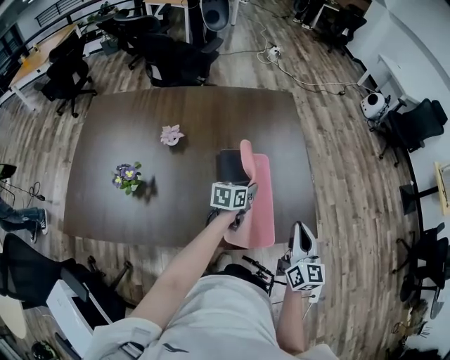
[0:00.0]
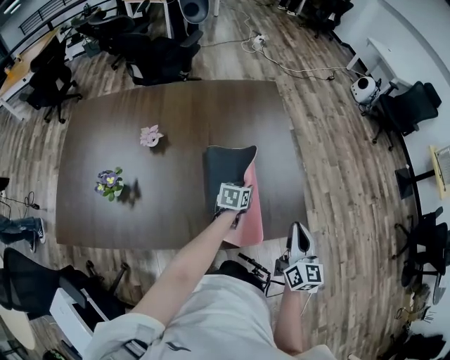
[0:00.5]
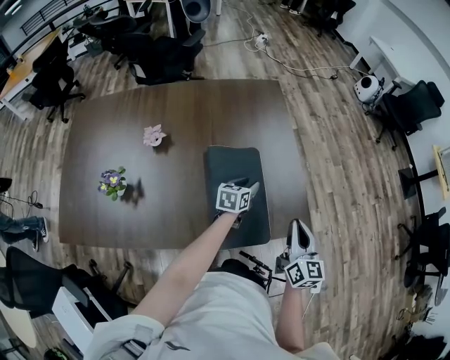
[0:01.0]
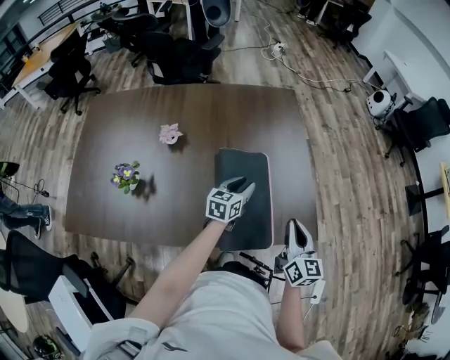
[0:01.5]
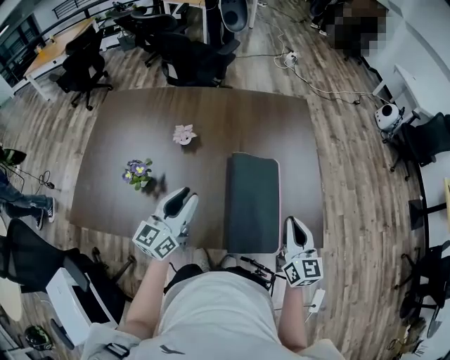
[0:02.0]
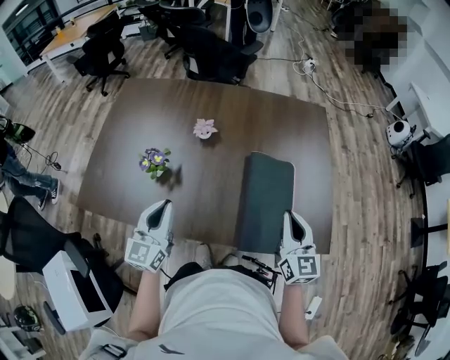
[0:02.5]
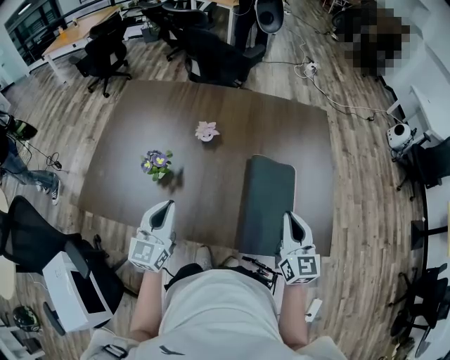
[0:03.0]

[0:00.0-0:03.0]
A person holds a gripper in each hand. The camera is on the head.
0:01.5 to 0:03.0: The left gripper shifts approximately 40 cm to the left, backward and upward, and swivels approximately 40 degrees, while the right gripper heads to the left, covering about 15 cm.

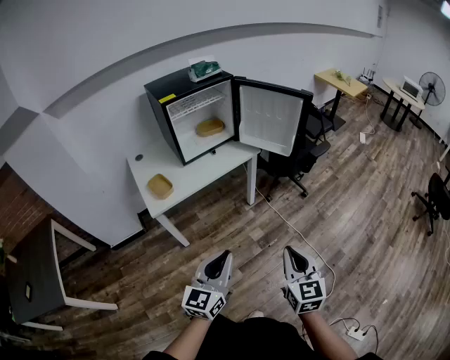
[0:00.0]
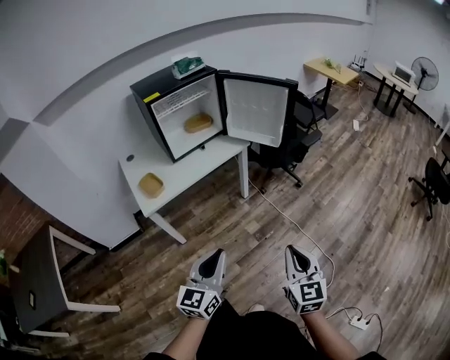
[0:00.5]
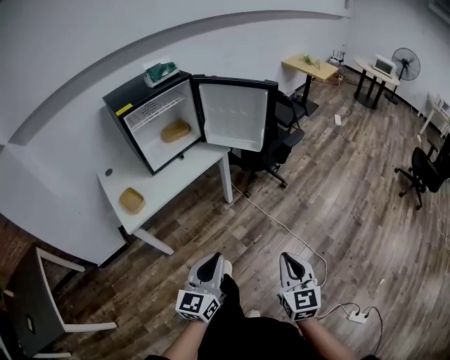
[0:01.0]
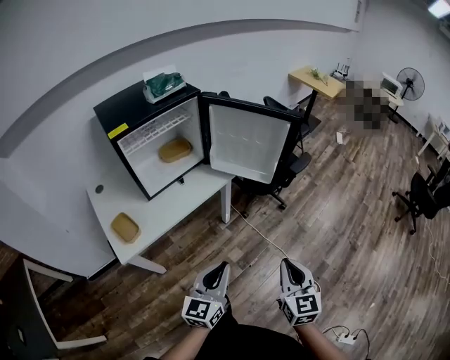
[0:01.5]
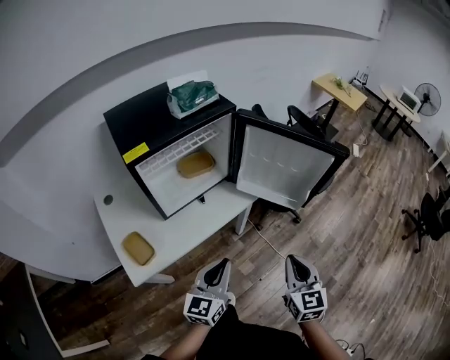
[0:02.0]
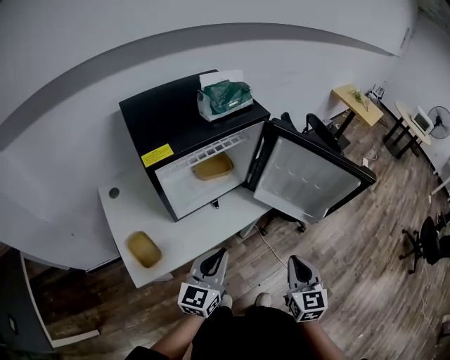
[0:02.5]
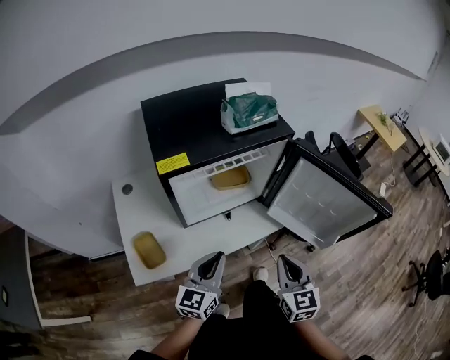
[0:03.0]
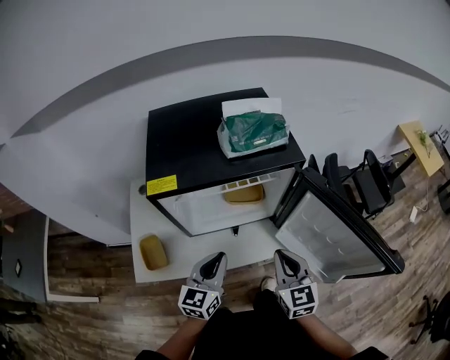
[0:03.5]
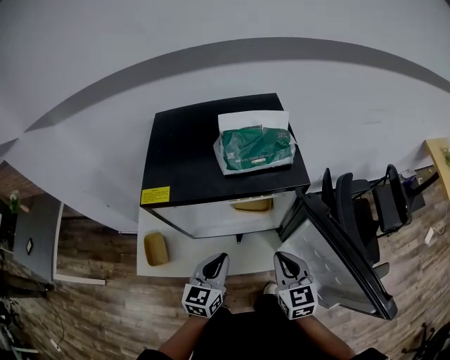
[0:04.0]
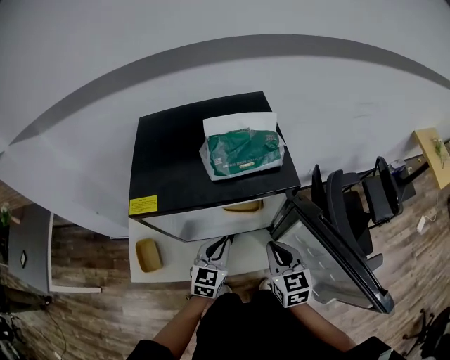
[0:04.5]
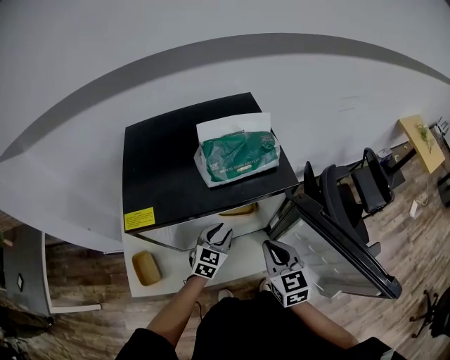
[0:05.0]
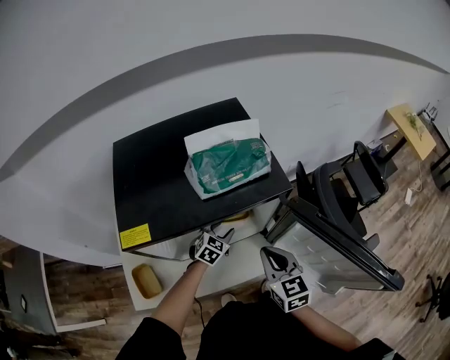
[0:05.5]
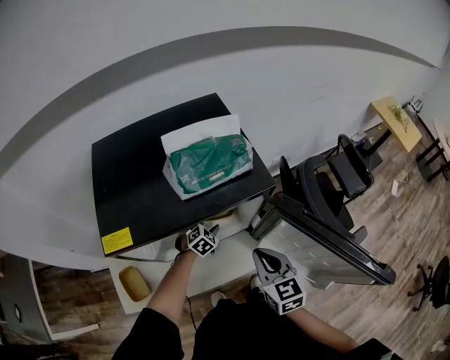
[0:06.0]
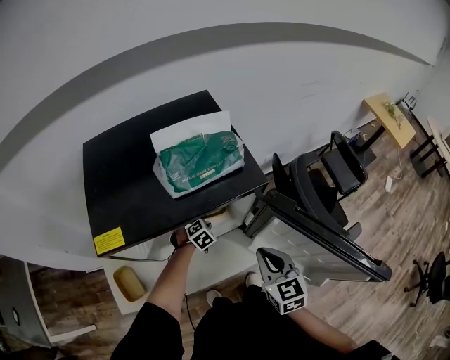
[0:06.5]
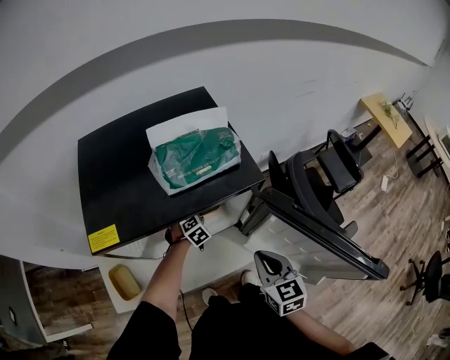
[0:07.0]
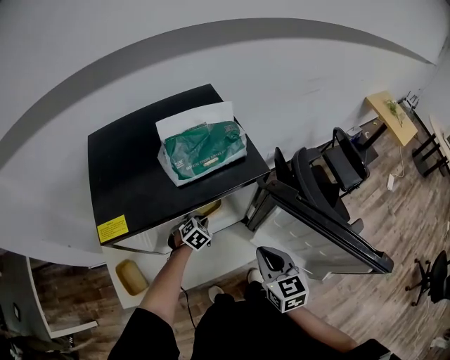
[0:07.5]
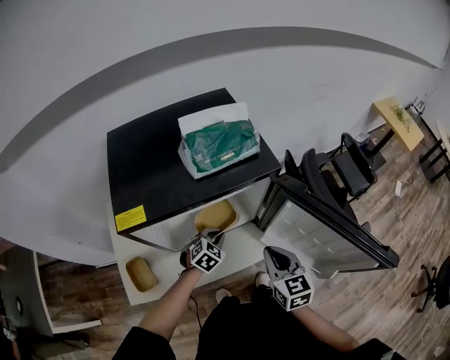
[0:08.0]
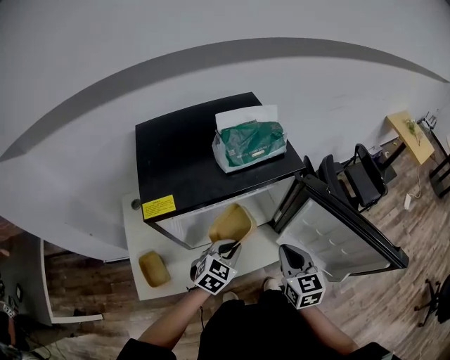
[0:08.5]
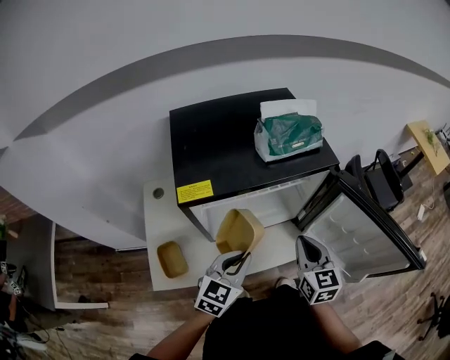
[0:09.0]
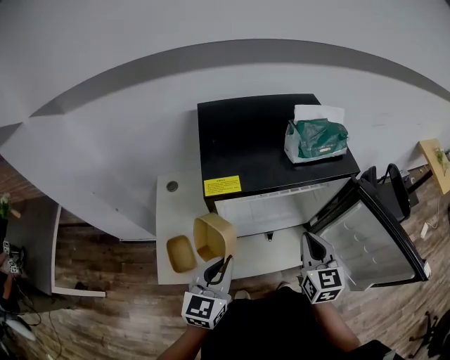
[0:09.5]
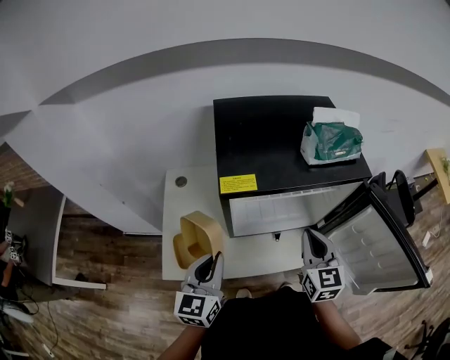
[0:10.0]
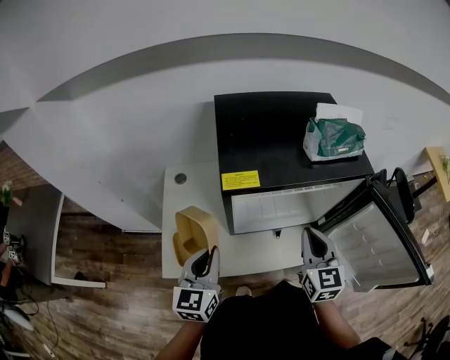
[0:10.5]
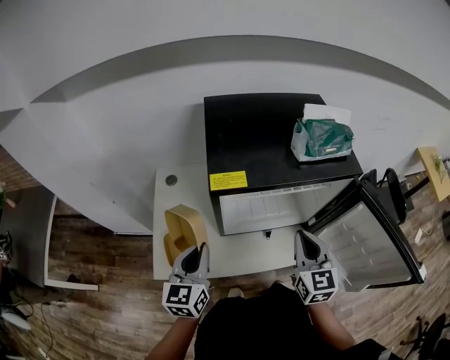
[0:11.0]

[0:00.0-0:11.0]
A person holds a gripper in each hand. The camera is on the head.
0:00.0 to 0:02.0: The grippers both shift forward by approximately 35 cm.
0:02.0 to 0:03.5: The right gripper ends up approximately 30 cm from where it was, and changes its angle by roughly 30 degrees. The left gripper changes place by roughly 20 cm, and rotates some 30 degrees.
0:03.5 to 0:05.5: The right gripper heads forward, covering approximately 10 cm. Meanwhile the left gripper moves forward and downward, about 30 cm, rotates about 40 degrees, and opens its fingers.
0:05.5 to 0:07.5: The left gripper shifts roughly 5 cm downward, and closes its fingers, while the right gripper moves approximately 5 cm.
0:07.5 to 0:09.0: The right gripper heads to the left, covering some 5 cm. Meanwhile the left gripper goes approximately 30 cm upward and backward, and angles its fingers upward, by about 40 degrees.
0:09.0 to 0:11.0: The left gripper is displaced to the left by roughly 20 cm, and changes its angle by about 40 degrees. Meanwhile the right gripper moves to the left, some 5 cm.

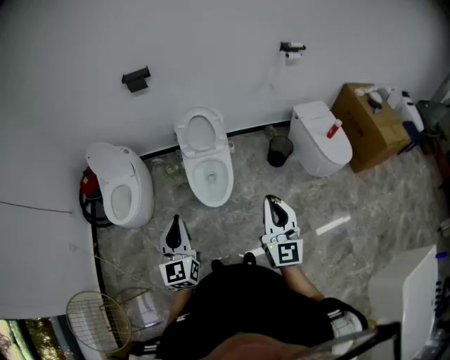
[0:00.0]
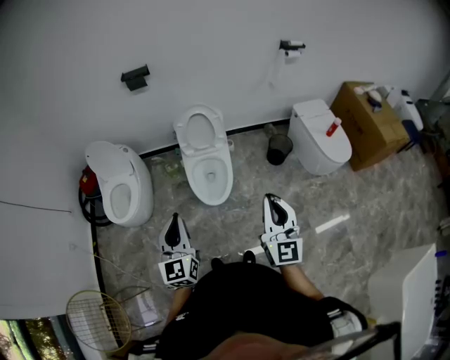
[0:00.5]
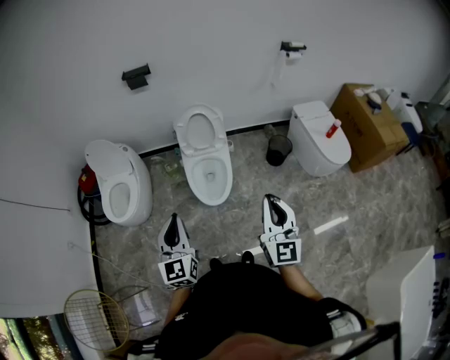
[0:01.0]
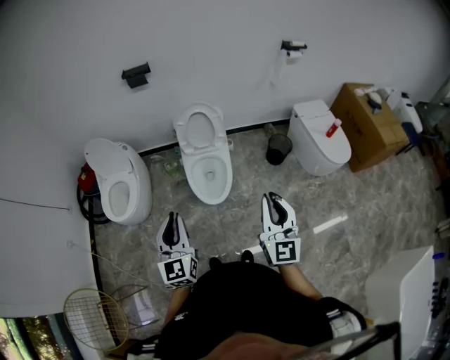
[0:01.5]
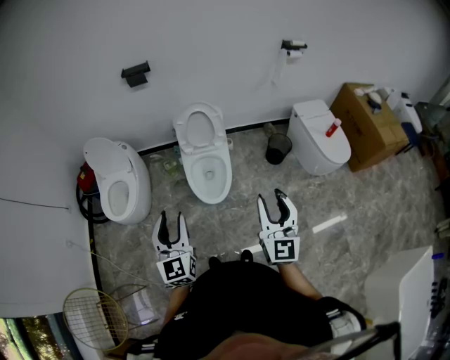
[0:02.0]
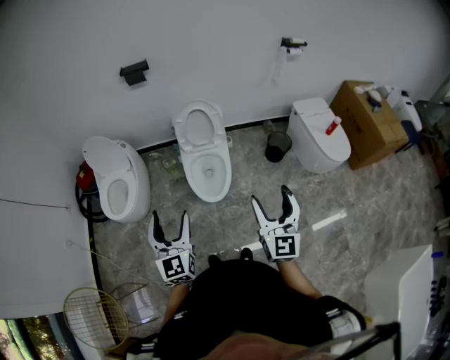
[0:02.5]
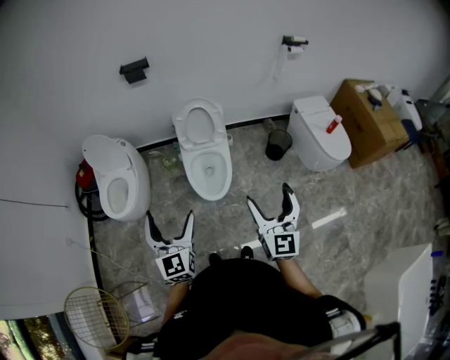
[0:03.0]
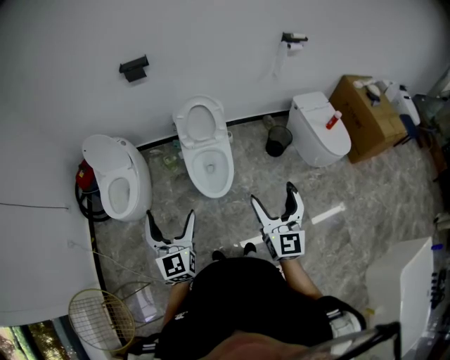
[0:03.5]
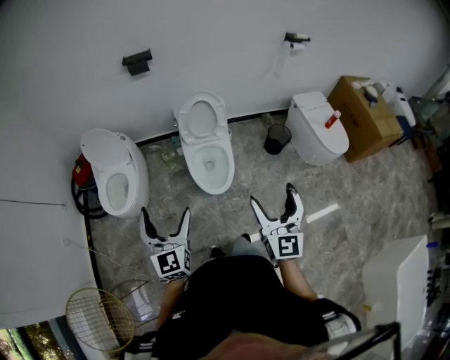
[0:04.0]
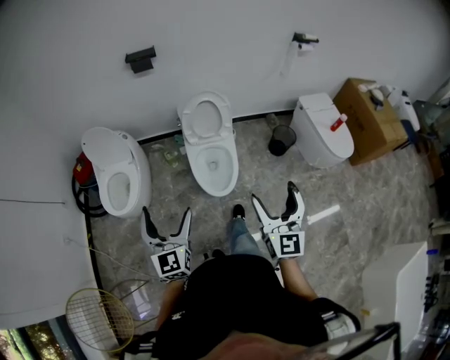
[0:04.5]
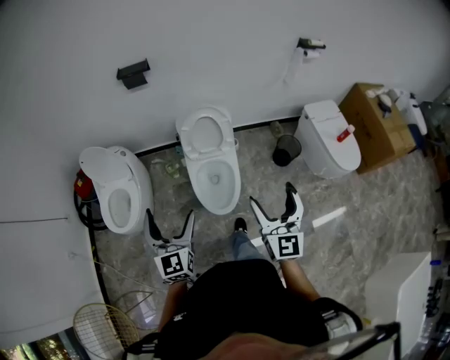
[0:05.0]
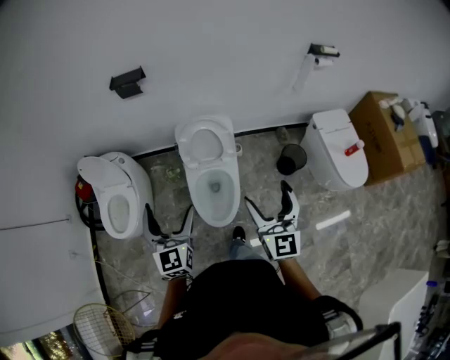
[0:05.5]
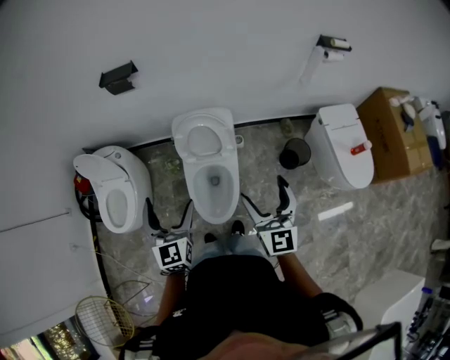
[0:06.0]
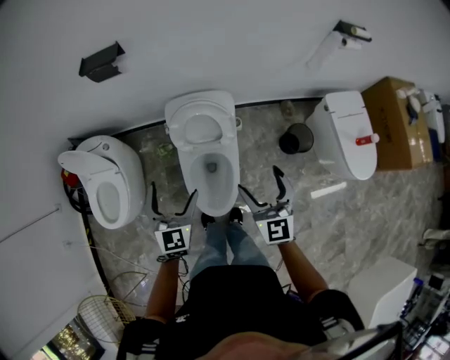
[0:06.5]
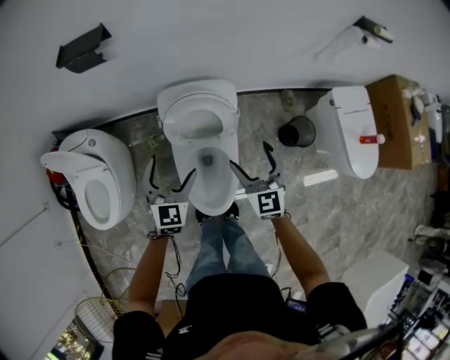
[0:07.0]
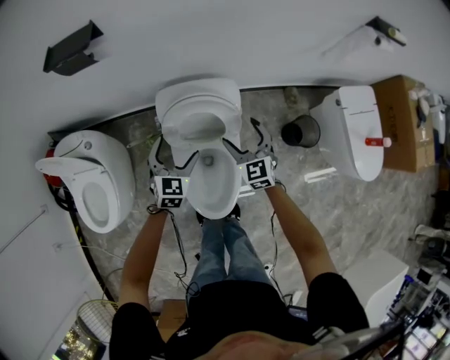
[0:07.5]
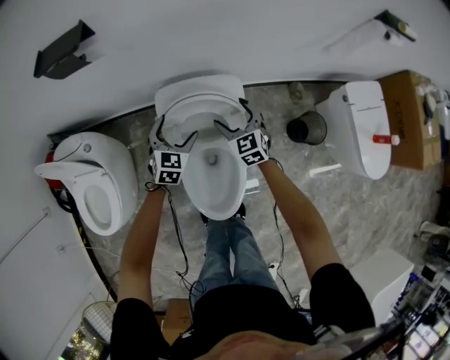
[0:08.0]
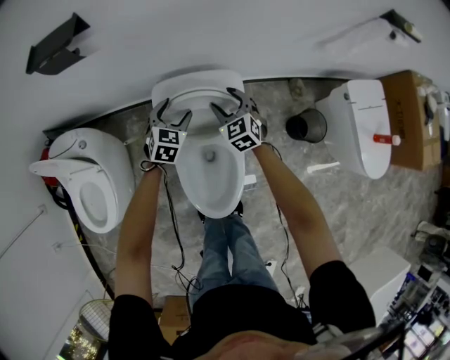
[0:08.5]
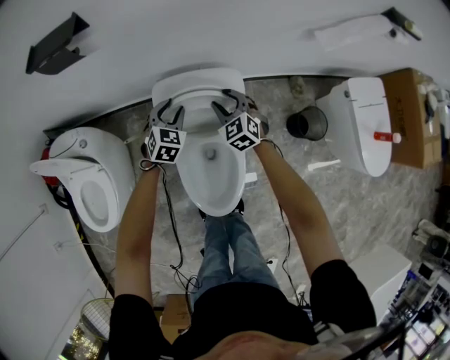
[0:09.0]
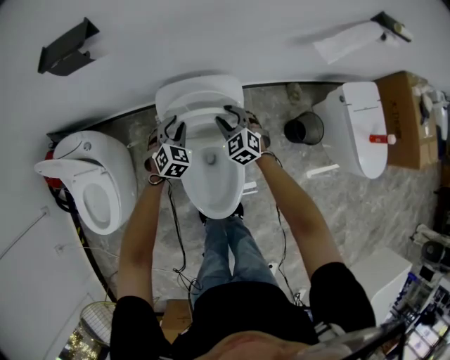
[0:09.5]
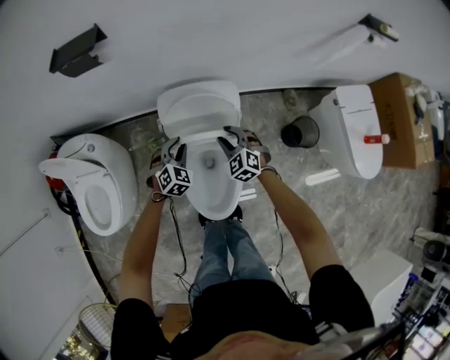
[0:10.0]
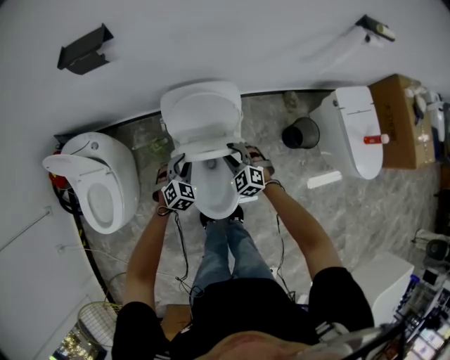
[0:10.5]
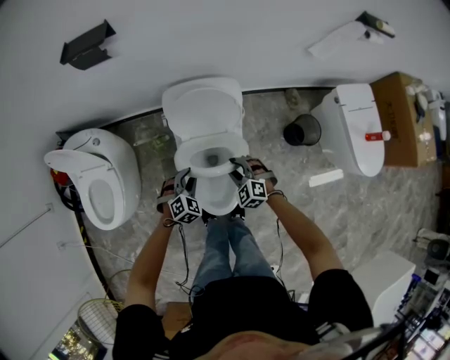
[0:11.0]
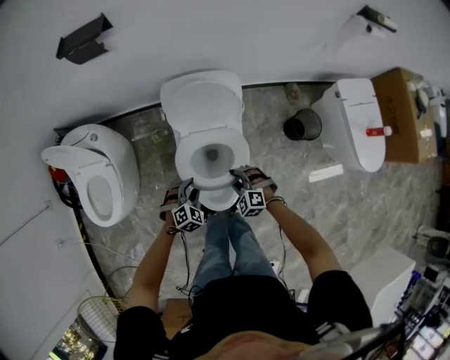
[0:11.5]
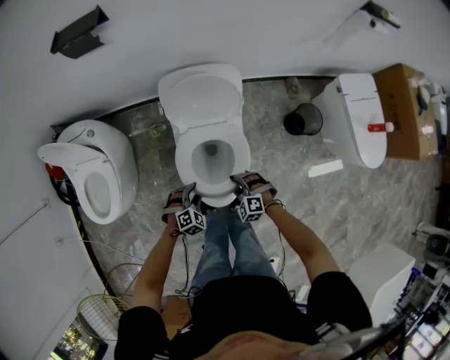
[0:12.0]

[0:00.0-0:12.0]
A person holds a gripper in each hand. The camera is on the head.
0:00.0 to 0:02.0: The right gripper opens up.
0:02.0 to 0:04.0: The grippers both shift to the left by about 10 cm. The right gripper opens its fingers, while the left gripper opens its fingers.
0:04.0 to 0:06.0: The left gripper shifts about 35 cm forward and to the right. The right gripper heads forward, covering about 35 cm.
0:06.0 to 0:08.0: The two grippers go some 50 cm forward and downward. The left gripper rotates roughly 30 degrees, while the right gripper turns by approximately 30 degrees.
0:08.0 to 0:10.0: The two grippers go about 10 cm backward. The left gripper changes its angle by roughly 20 degrees, and closes up; the right gripper turns by approximately 20 degrees, and closes its fingers.
0:10.0 to 0:12.0: Both grippers travel together backward and downward, some 30 cm. The right gripper swivels roughly 30 degrees, while the left gripper rotates roughly 20 degrees.
